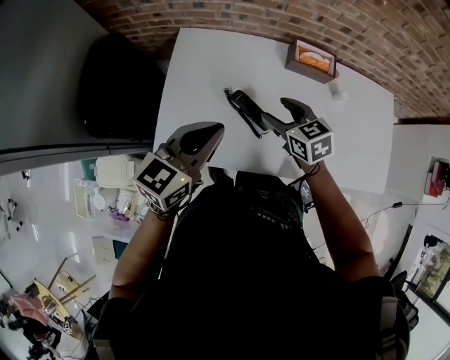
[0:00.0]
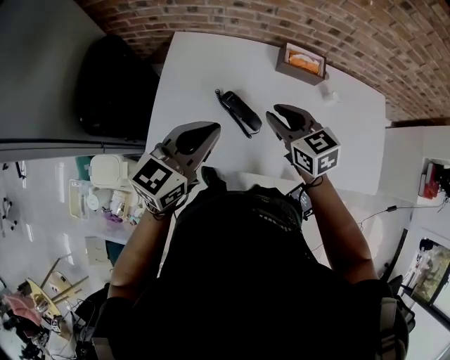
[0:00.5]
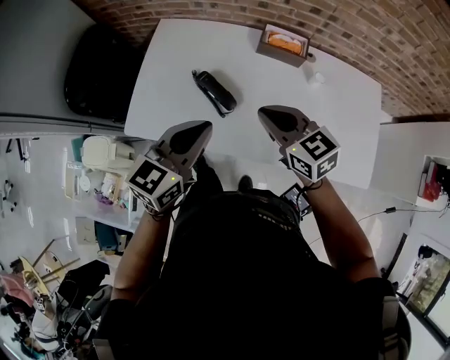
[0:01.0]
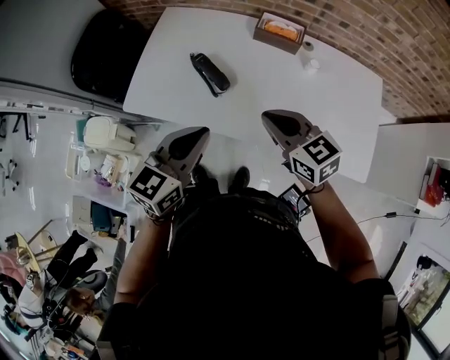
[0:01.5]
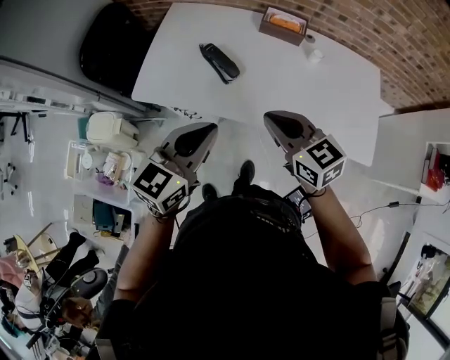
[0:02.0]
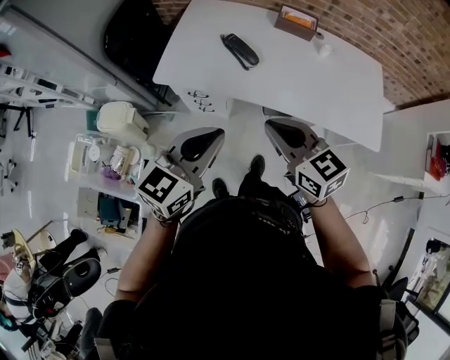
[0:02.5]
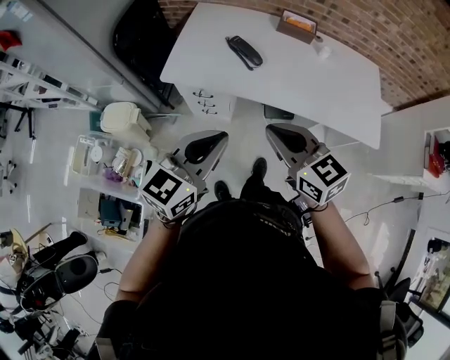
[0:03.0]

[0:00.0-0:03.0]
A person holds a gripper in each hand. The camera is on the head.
0:00.0 to 0:01.5: The left gripper is displaced to the right and backward by about 25 cm; the right gripper is displaced backward, to the right and upward by about 25 cm, changes its angle by about 20 degrees, and closes.
0:01.5 to 0:03.0: The two grippers go roughly 30 cm backward and to the left.

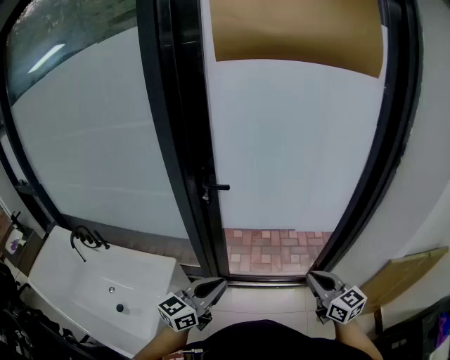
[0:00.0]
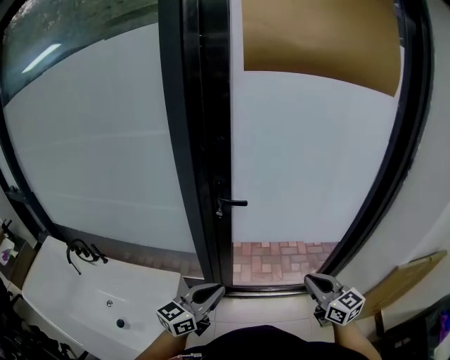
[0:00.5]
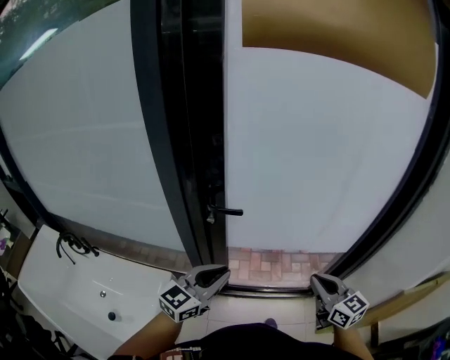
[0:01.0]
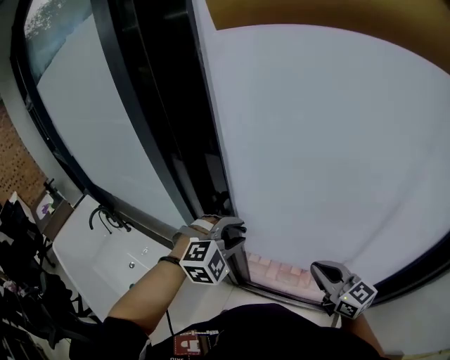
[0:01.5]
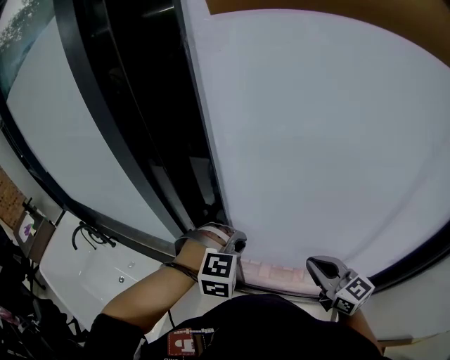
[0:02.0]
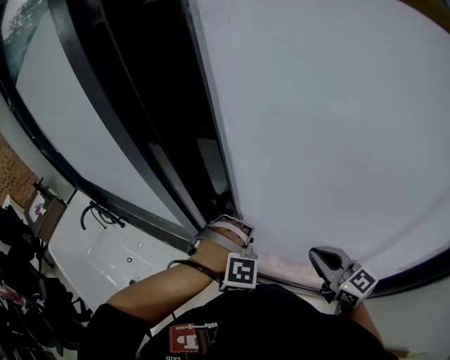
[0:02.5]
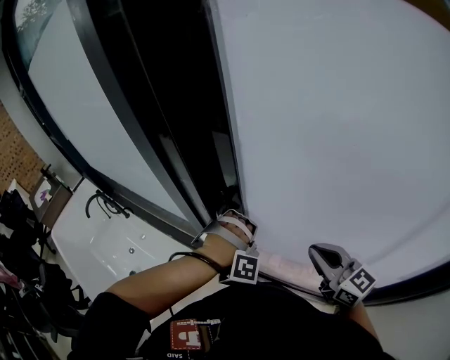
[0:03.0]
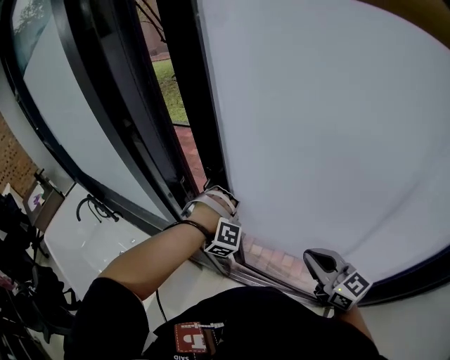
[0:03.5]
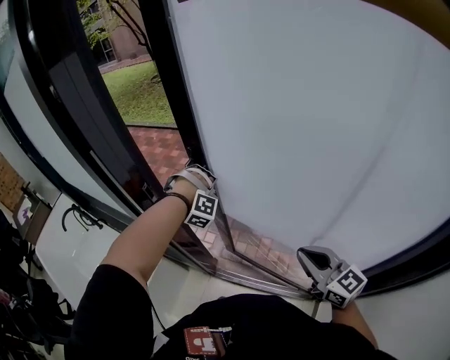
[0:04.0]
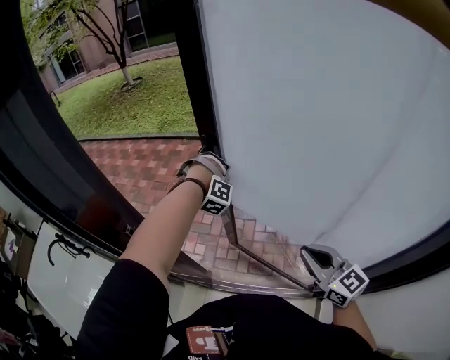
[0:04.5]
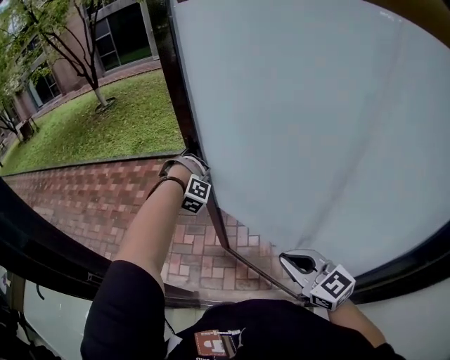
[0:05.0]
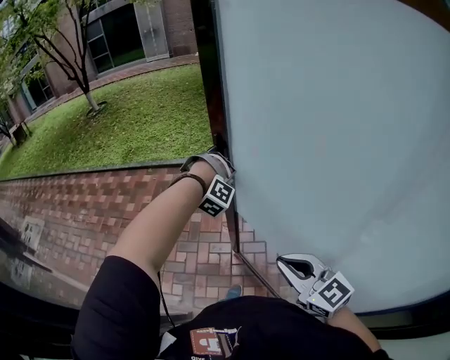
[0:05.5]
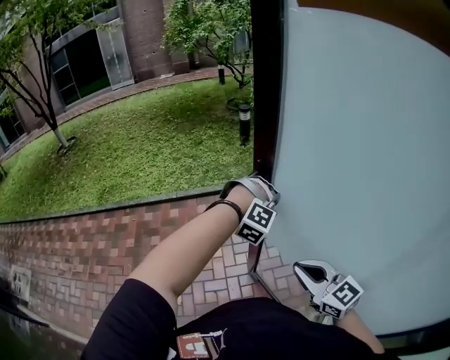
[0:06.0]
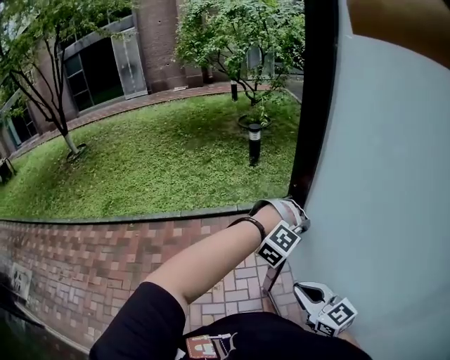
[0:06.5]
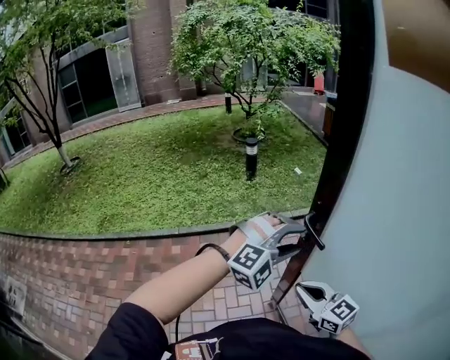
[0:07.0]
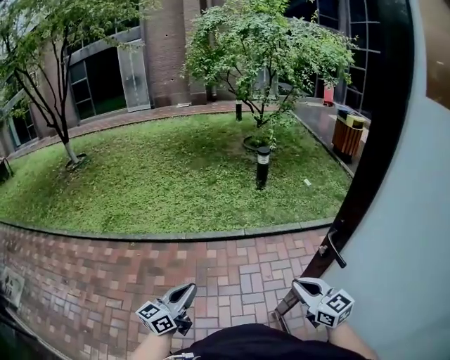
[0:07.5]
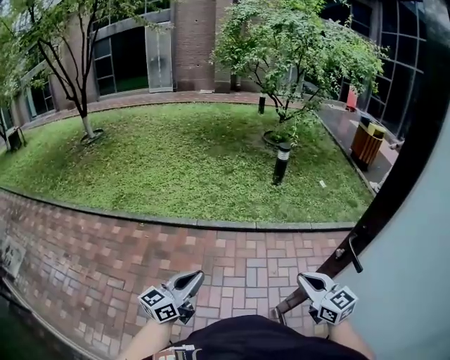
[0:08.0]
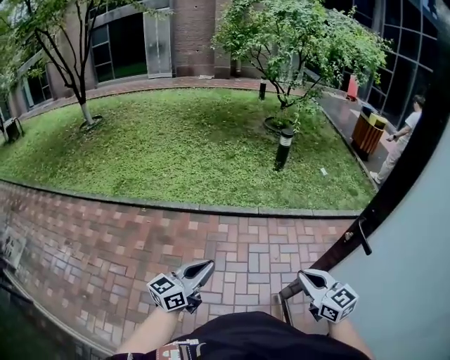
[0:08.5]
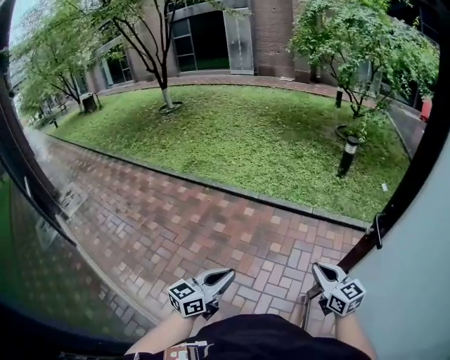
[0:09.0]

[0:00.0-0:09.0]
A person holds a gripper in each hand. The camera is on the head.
0:00.0 to 0:02.0: The right gripper moves approximately 35 cm, while the left gripper shifts by approximately 35 cm, points its fingers roughly 50 degrees further downward, and opens, then closes once more.
0:02.0 to 0:04.5: The right gripper goes roughly 10 cm to the right. The left gripper heads forward and to the right, covering approximately 35 cm, and swivels some 40 degrees.
0:04.5 to 0:07.0: The two grippers travel together, approximately 50 cm. The left gripper rotates about 70 degrees, and opens up.
0:07.0 to 0:09.0: The right gripper changes place by some 10 cm, and changes its angle by about 20 degrees. The left gripper changes place by roughly 40 cm, twists roughly 90 degrees counterclockwise, seen from behind, and closes its fingers.

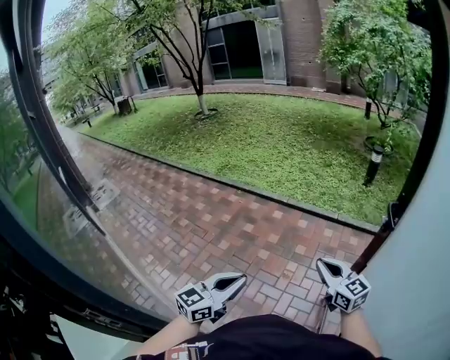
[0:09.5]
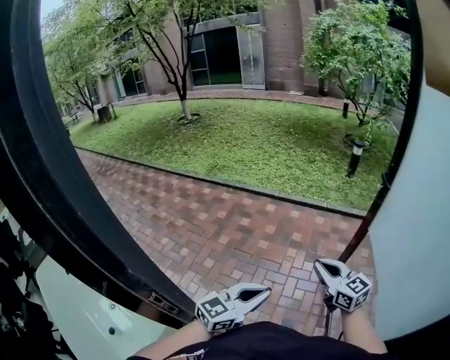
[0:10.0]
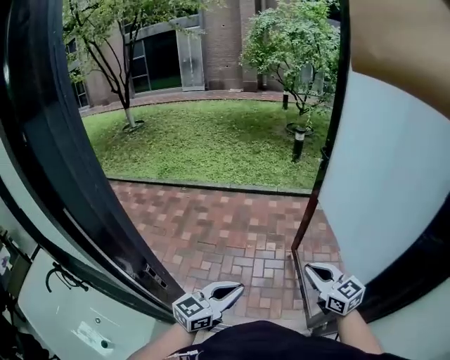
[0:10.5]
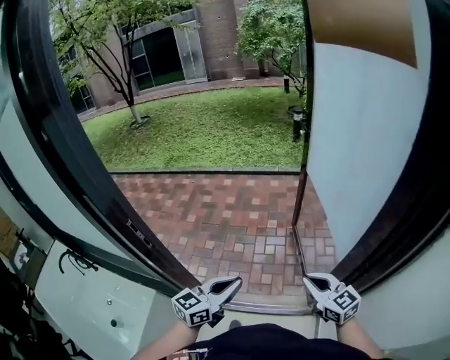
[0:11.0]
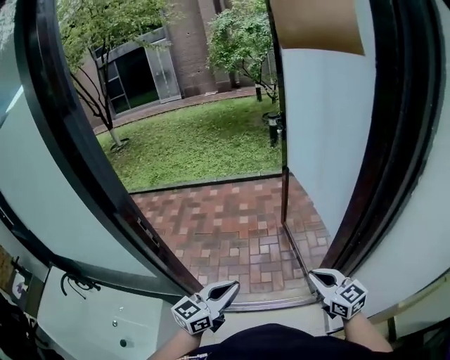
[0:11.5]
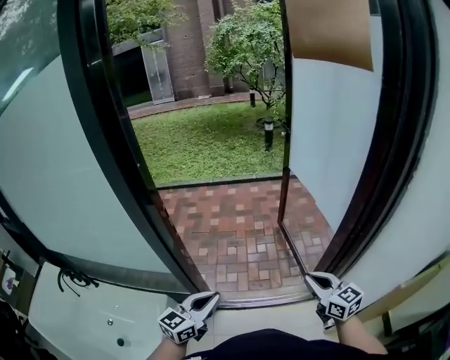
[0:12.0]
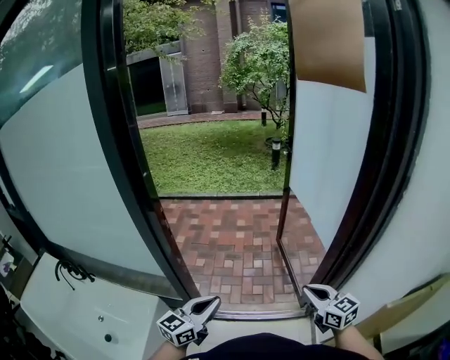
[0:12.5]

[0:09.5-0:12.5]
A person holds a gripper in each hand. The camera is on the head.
0:09.5 to 0:11.0: The two grippers travel together, backward, roughly 50 cm. The left gripper changes its angle by roughly 20 degrees.
0:11.0 to 0:12.5: The right gripper travels backward by some 15 cm; the left gripper heads backward and to the left, covering roughly 20 cm.

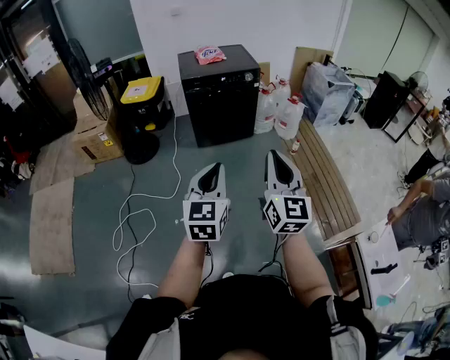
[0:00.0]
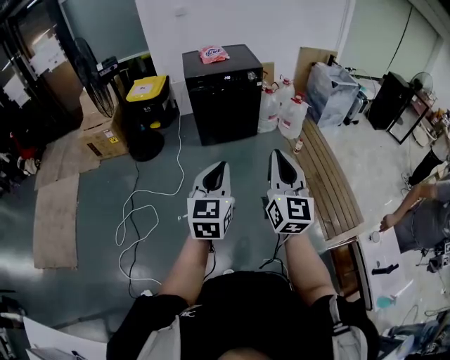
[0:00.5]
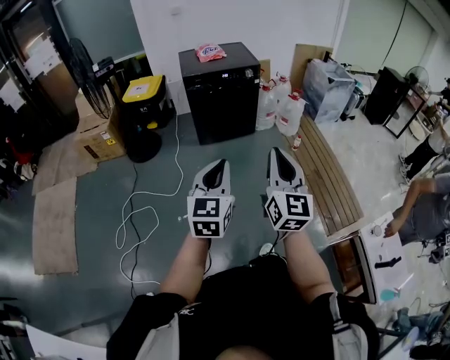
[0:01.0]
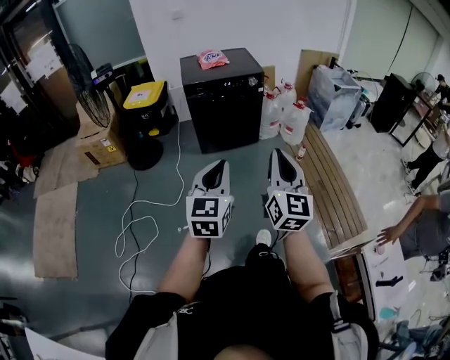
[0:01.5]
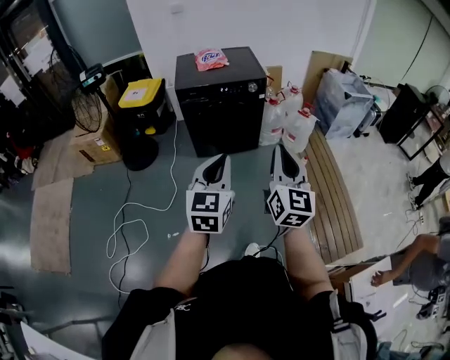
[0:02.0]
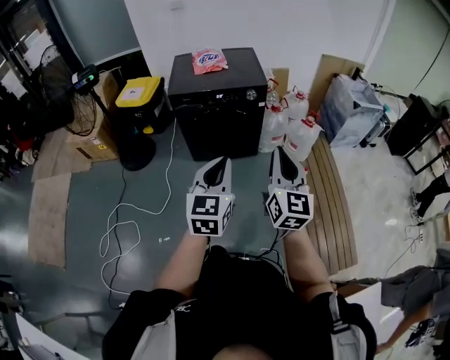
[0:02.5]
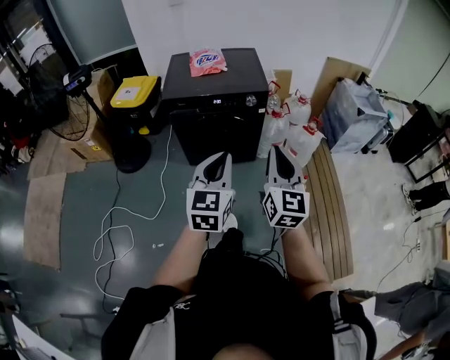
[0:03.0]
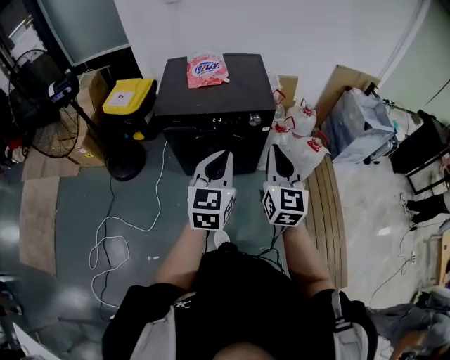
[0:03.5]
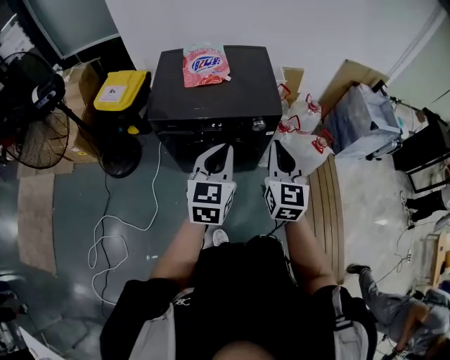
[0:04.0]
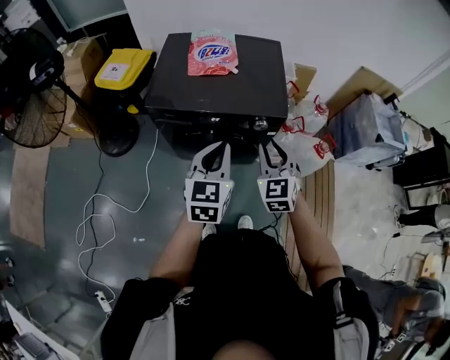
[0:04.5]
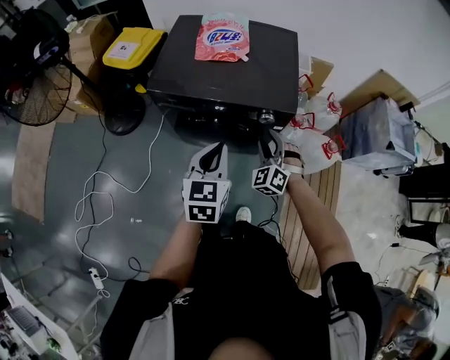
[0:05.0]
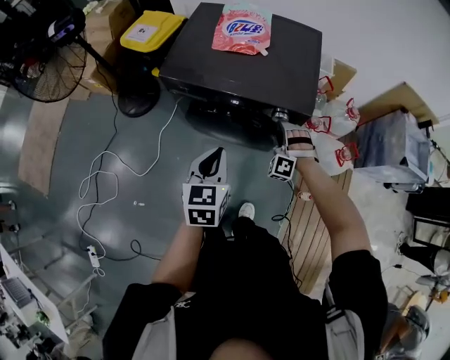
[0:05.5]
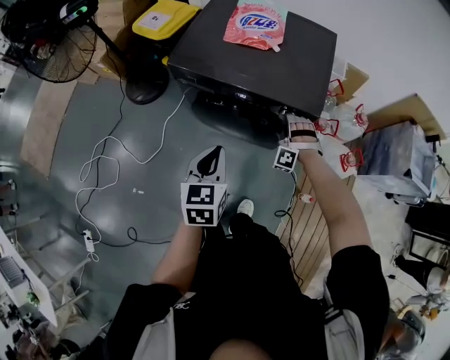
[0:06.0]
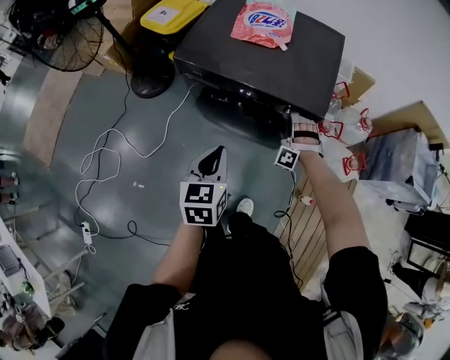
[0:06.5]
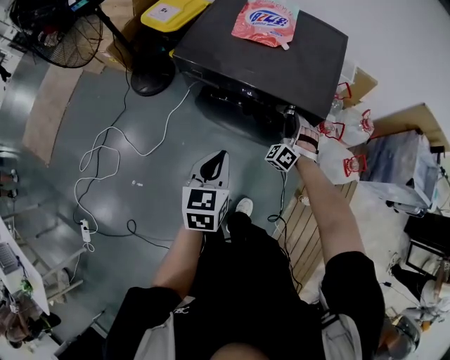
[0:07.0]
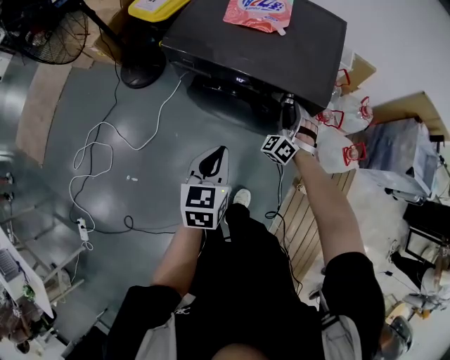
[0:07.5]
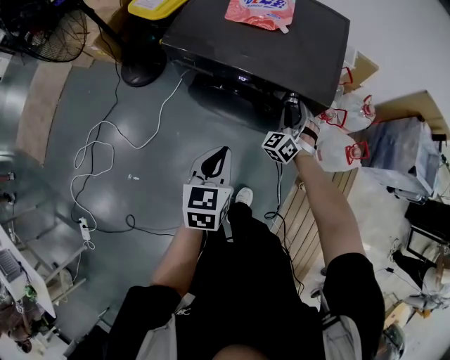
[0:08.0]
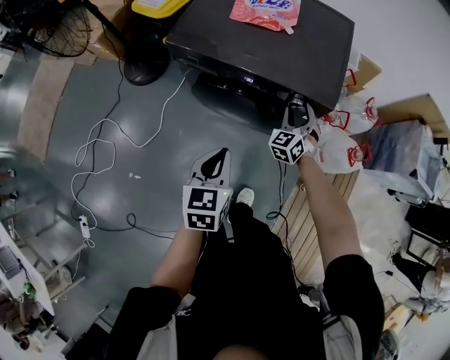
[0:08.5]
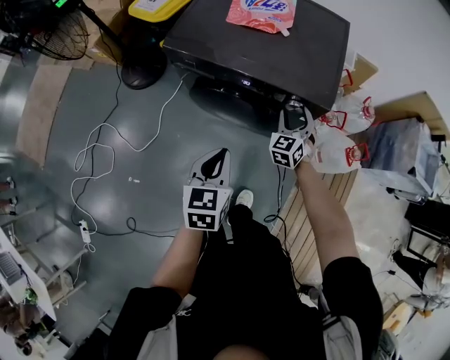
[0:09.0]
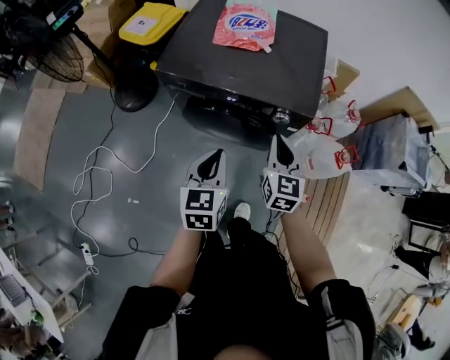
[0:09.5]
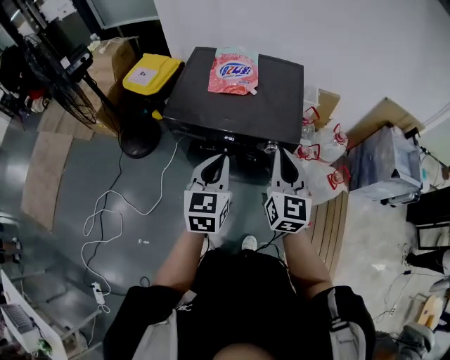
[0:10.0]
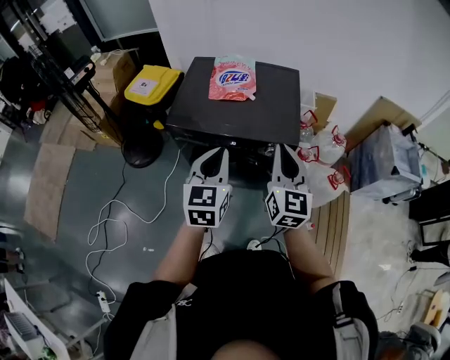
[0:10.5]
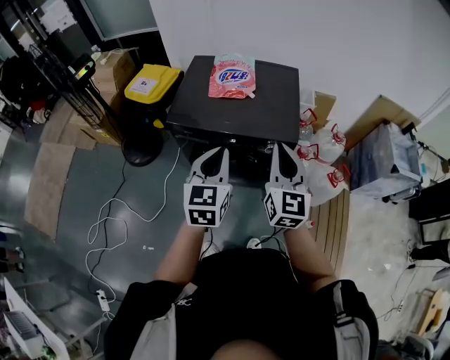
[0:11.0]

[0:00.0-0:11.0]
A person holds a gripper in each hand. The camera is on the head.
0:00.0 to 0:02.0: The grippers both shift forward by about 25 cm.
0:02.0 to 0:03.5: The two grippers go some 40 cm forward.
0:03.5 to 0:05.5: The right gripper shifts some 40 cm downward and forward, rolls counterclockwise, seen from behind, by roughly 90 degrees, and opens its fingers. Meanwhile the left gripper is displaced downward and forward by approximately 20 cm, and swivels some 30 degrees.
0:05.5 to 0:07.5: The right gripper turns by about 30 degrees, while the left gripper is displaced downward by approximately 5 cm.
0:07.5 to 0:09.0: The right gripper turns by some 40 degrees.
0:09.0 to 0:11.0: The right gripper heads upward, covering about 30 cm, turns by approximately 40 degrees, and closes; the left gripper is displaced upward by some 20 cm, and changes its angle by about 20 degrees.
